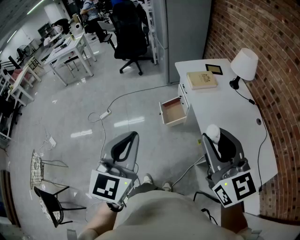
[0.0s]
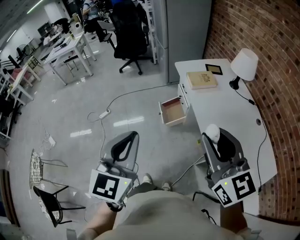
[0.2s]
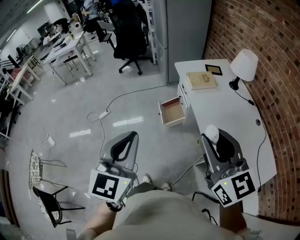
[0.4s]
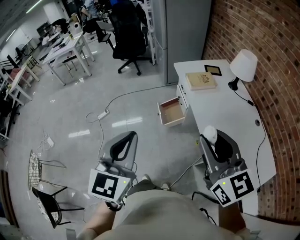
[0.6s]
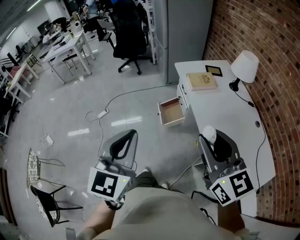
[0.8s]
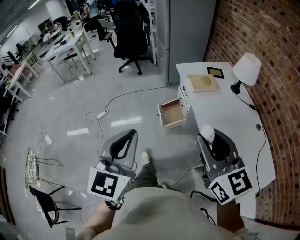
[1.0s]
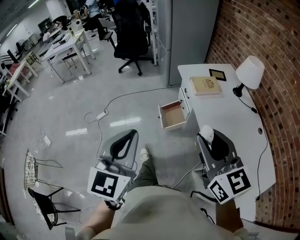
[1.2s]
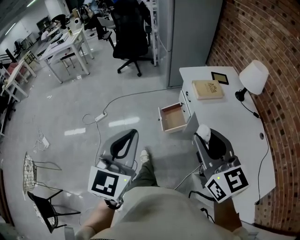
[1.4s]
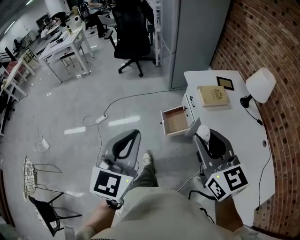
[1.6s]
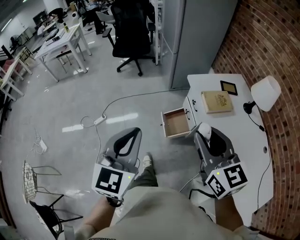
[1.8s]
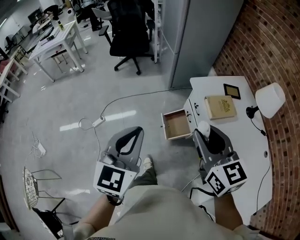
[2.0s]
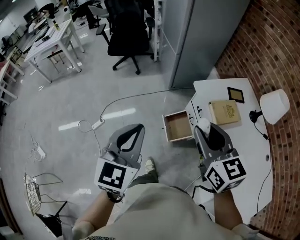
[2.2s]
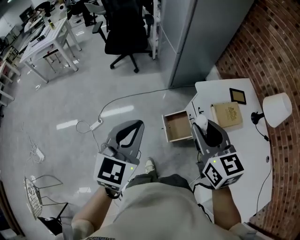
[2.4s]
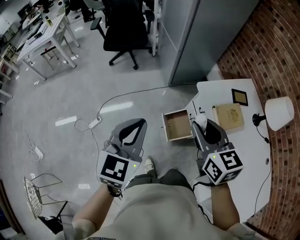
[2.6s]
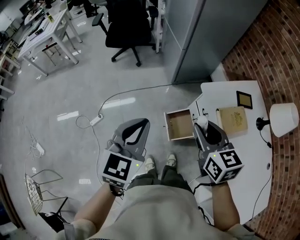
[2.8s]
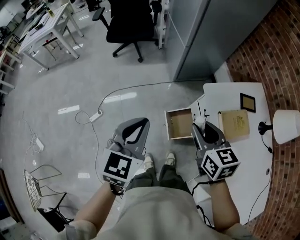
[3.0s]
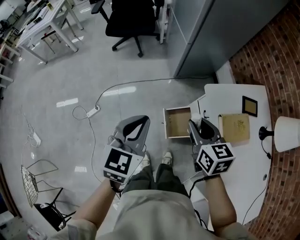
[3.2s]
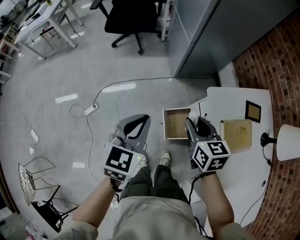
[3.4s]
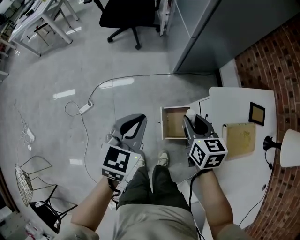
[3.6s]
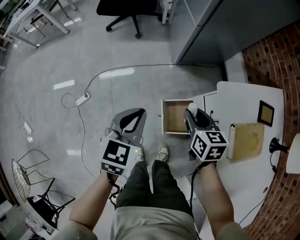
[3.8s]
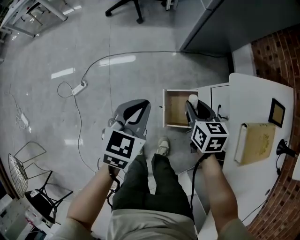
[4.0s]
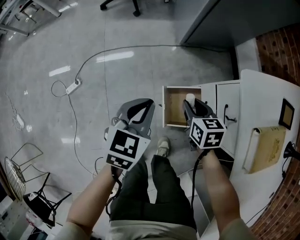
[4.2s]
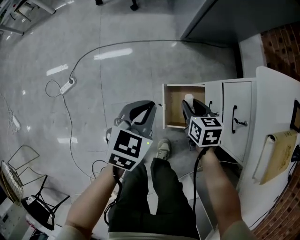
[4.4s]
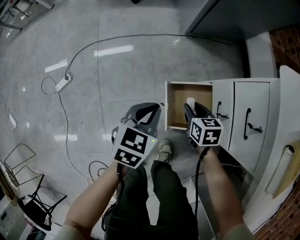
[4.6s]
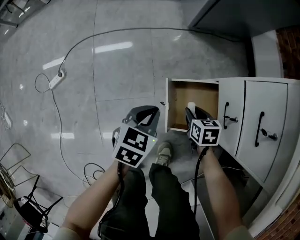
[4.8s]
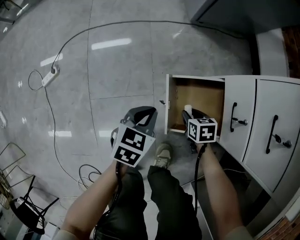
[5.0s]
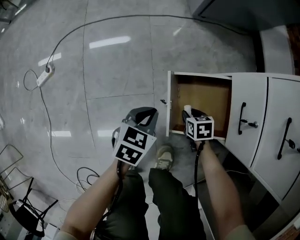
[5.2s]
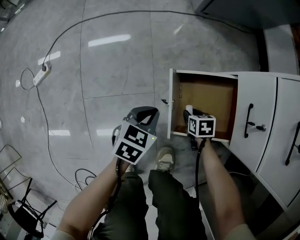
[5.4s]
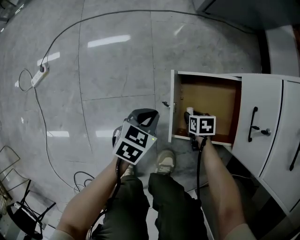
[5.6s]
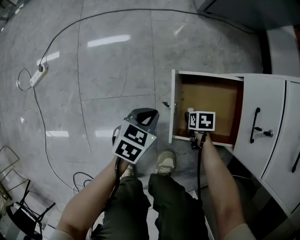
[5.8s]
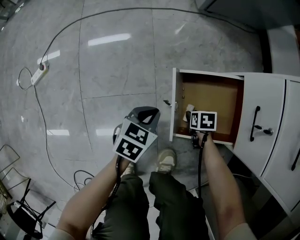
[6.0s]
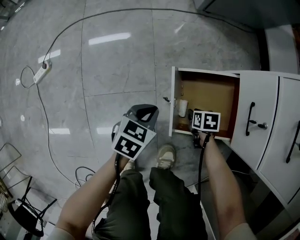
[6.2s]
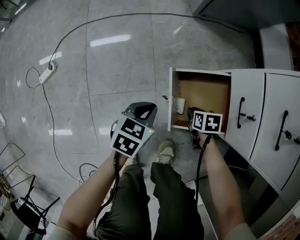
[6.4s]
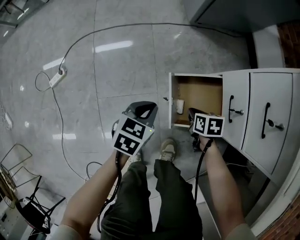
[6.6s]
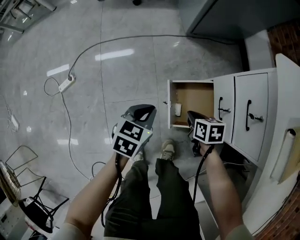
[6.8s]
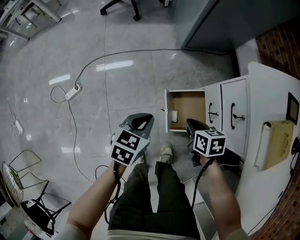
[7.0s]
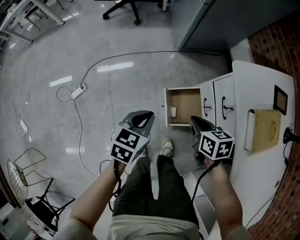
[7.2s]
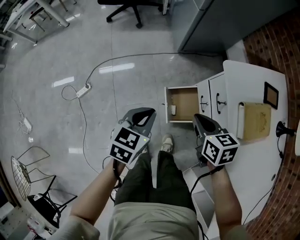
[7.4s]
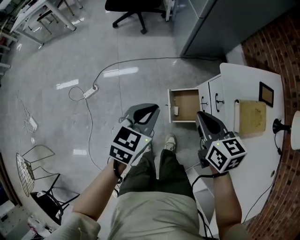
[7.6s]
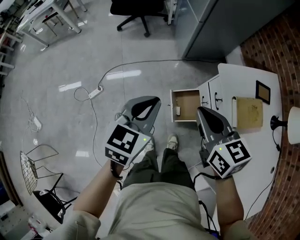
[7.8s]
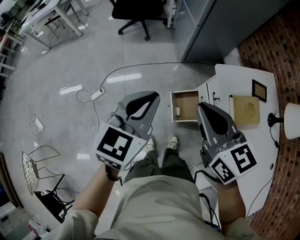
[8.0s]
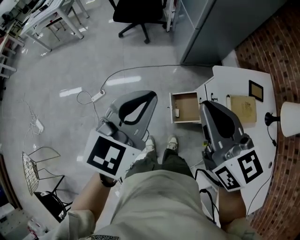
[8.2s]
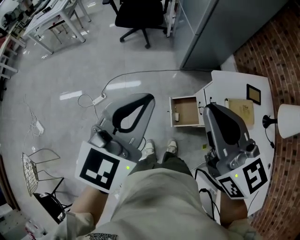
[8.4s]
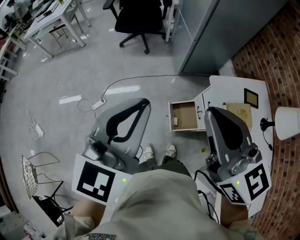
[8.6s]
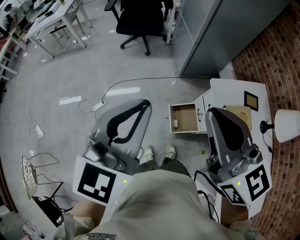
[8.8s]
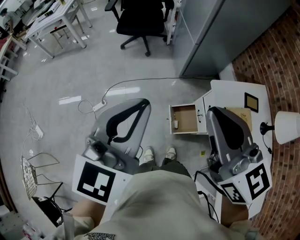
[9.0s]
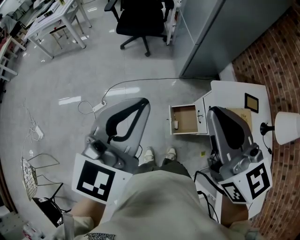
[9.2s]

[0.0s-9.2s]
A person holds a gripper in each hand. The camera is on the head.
0.0s to 1.6s: The left gripper goes about 15 cm forward, while the right gripper moves forward and to the left, approximately 20 cm.
1.6s to 3.0s: The right gripper moves forward and downward, about 40 cm, and swivels approximately 20 degrees; the left gripper shifts roughly 35 cm forward.
3.0s to 4.6s: Both grippers travel together downward, approximately 60 cm. The right gripper swivels approximately 30 degrees, while the left gripper turns by some 20 degrees.
4.6s to 6.2s: Both grippers travel together downward, approximately 30 cm. The right gripper turns by some 30 degrees.
6.2s to 7.6s: Both grippers move upward, some 70 cm. The left gripper changes its angle by some 20 degrees. The right gripper points its fingers approximately 40 degrees further upward, and closes its fingers.
7.6s to 9.2s: The two grippers go about 35 cm upward. The right gripper changes its angle by approximately 30 degrees, while the left gripper swivels about 30 degrees.

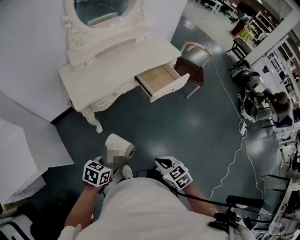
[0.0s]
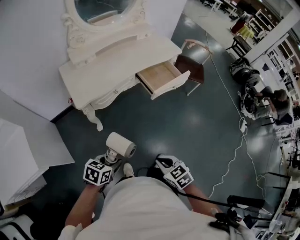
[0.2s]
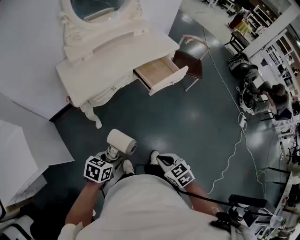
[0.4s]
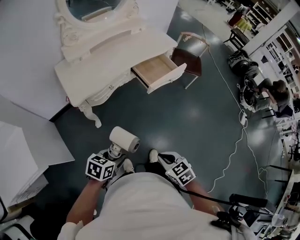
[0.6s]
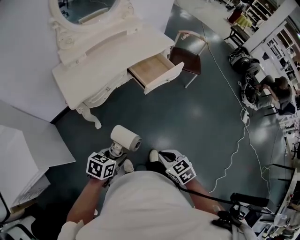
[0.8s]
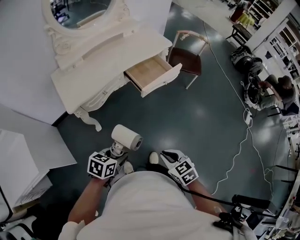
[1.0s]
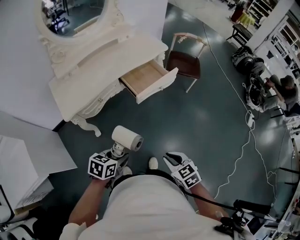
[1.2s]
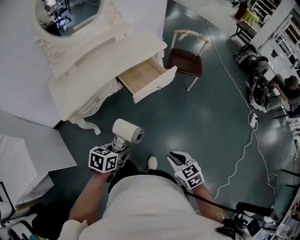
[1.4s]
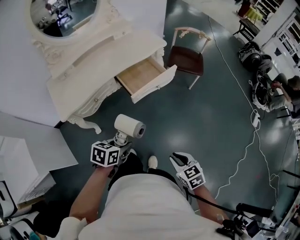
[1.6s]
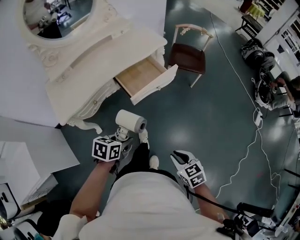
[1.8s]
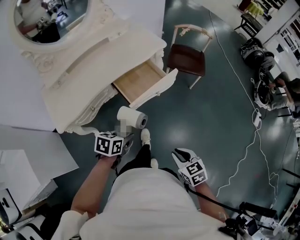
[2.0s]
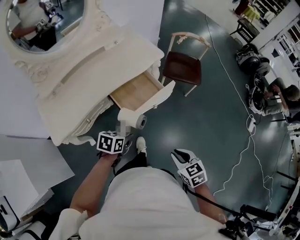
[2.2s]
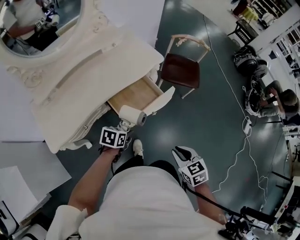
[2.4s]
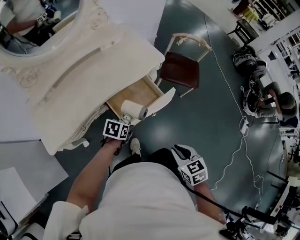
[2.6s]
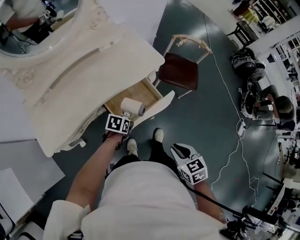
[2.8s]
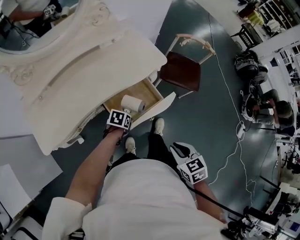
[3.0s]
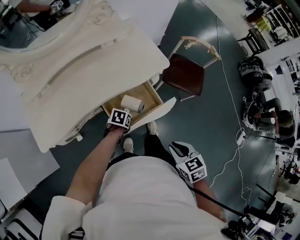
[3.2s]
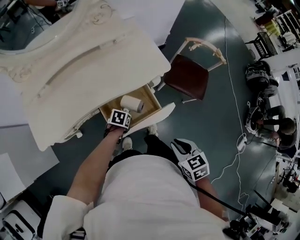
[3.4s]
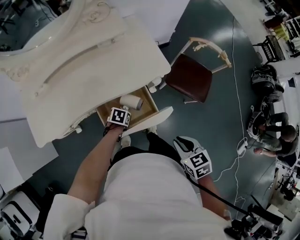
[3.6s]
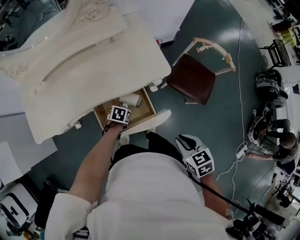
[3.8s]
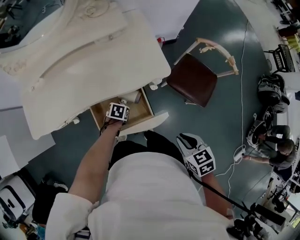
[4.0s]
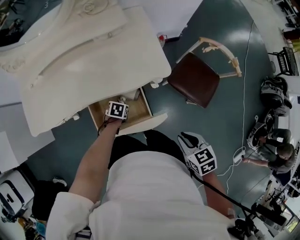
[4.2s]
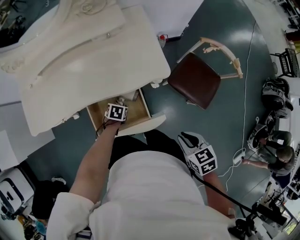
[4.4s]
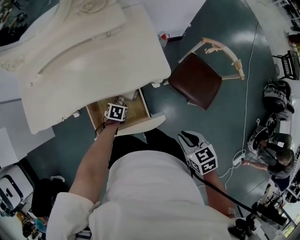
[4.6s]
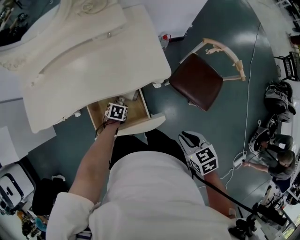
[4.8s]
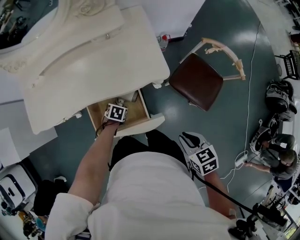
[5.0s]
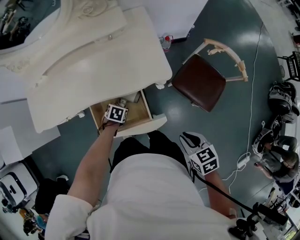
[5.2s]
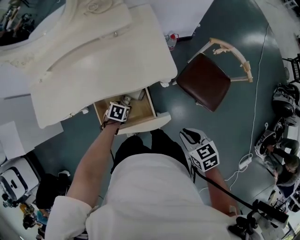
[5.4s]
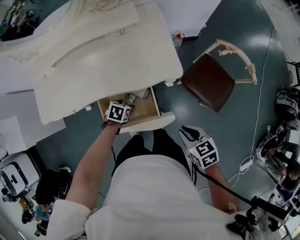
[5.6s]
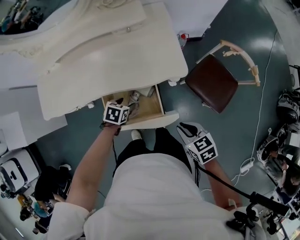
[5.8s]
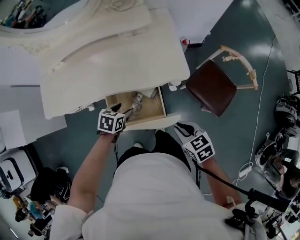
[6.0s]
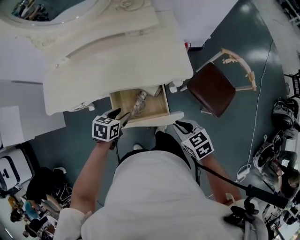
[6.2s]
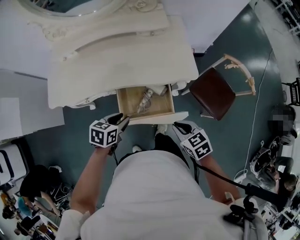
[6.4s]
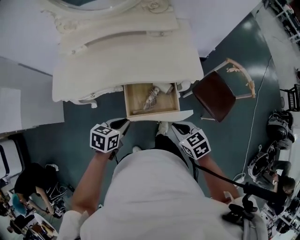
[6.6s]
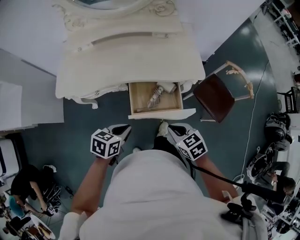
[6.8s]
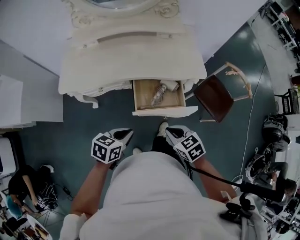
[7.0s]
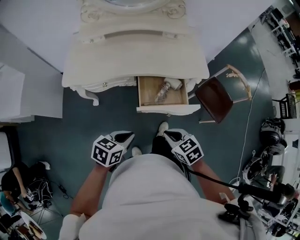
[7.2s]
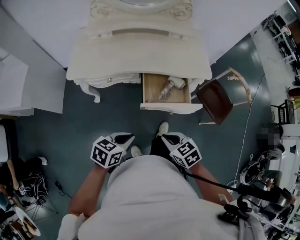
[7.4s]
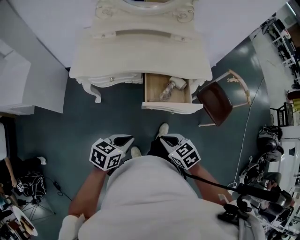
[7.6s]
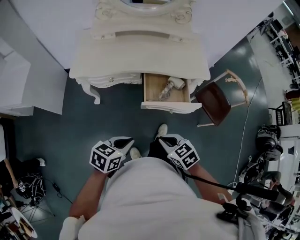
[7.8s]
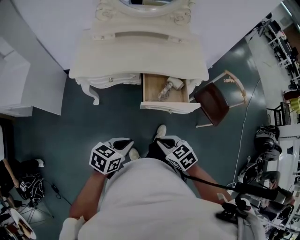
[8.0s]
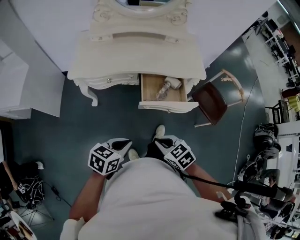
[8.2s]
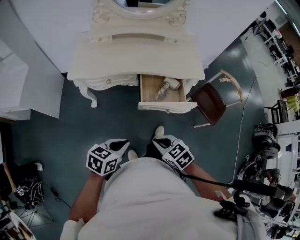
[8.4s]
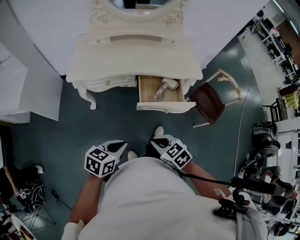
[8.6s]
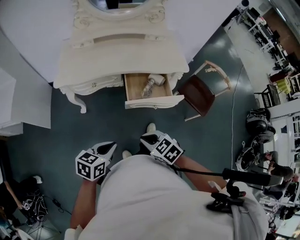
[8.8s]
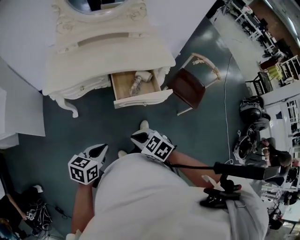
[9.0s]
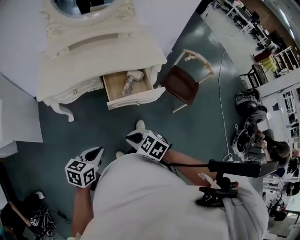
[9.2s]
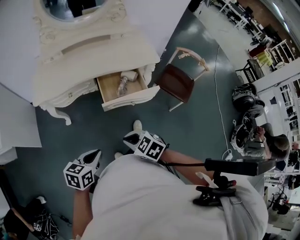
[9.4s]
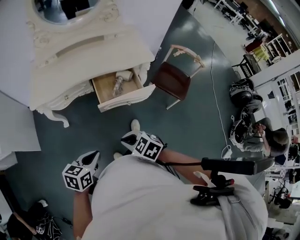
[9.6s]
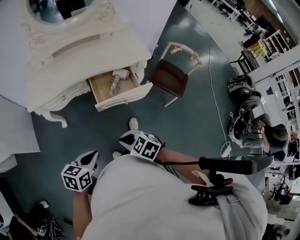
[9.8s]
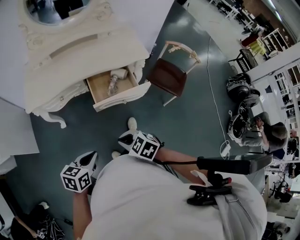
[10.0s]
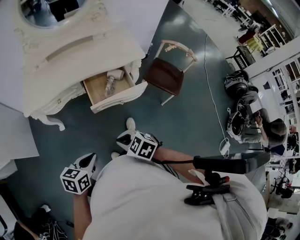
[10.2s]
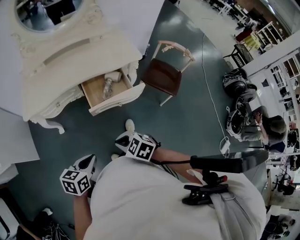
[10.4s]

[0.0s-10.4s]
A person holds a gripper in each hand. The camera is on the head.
0.0s to 1.4s: The grippers both shift to the right and forward by roughly 25 cm.
1.4s to 3.0s: The left gripper is displaced forward and downward by some 50 cm. The right gripper goes roughly 35 cm forward.
3.0s to 4.4s: The left gripper changes place by some 20 cm, and changes its angle by some 20 degrees. The right gripper ends up roughly 30 cm from where it was, and swivels some 20 degrees.
4.4s to 6.0s: The left gripper is displaced upward by about 15 cm, while the right gripper changes place by roughly 10 cm.
6.0s to 7.4s: The right gripper moves to the left and backward, approximately 35 cm. Meanwhile the left gripper travels backward, to the left and upward by approximately 40 cm, turns by some 20 degrees, and closes its fingers.
7.4s to 9.0s: The right gripper moves backward and to the left, about 10 cm. Meanwhile the left gripper shifts some 10 cm backward.
9.0s to 10.4s: There are only small adjustments of the grippers.

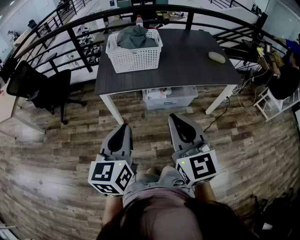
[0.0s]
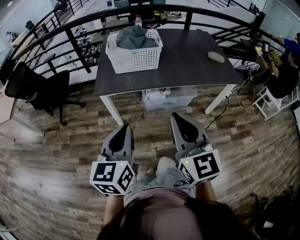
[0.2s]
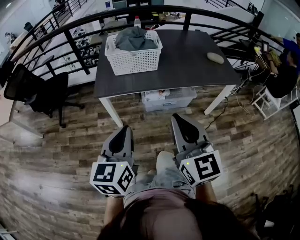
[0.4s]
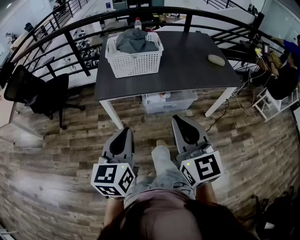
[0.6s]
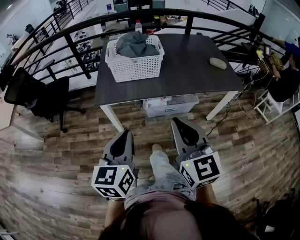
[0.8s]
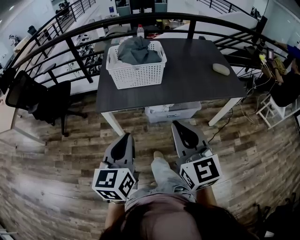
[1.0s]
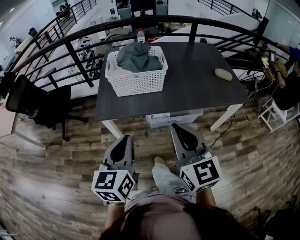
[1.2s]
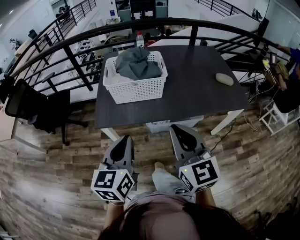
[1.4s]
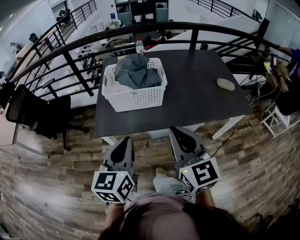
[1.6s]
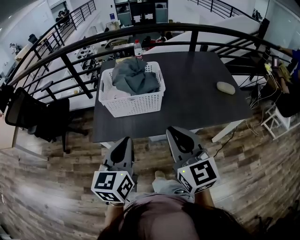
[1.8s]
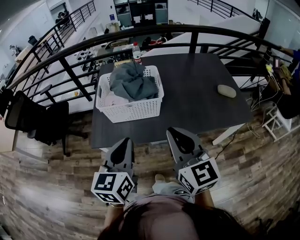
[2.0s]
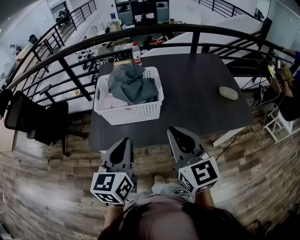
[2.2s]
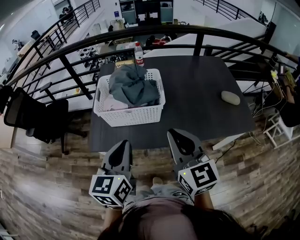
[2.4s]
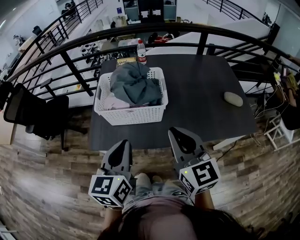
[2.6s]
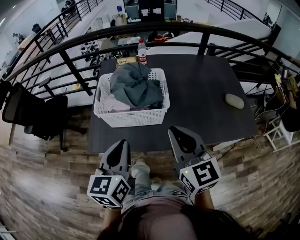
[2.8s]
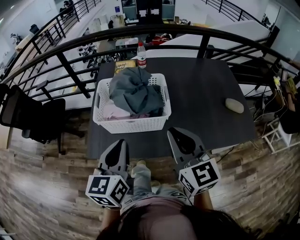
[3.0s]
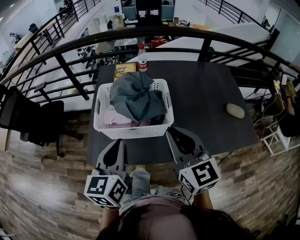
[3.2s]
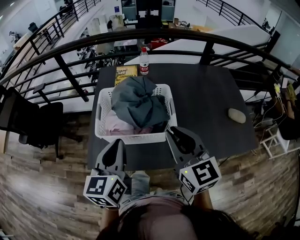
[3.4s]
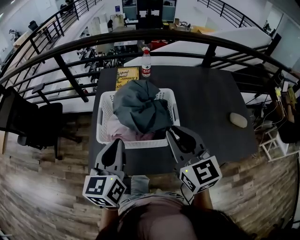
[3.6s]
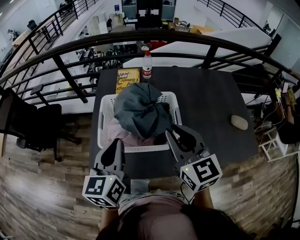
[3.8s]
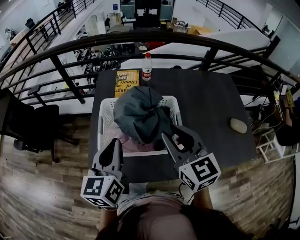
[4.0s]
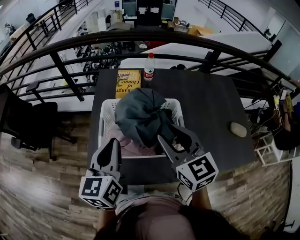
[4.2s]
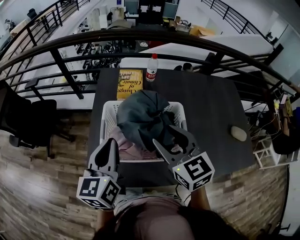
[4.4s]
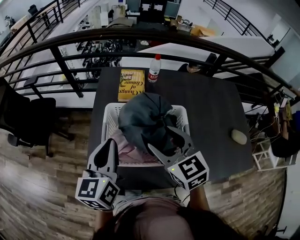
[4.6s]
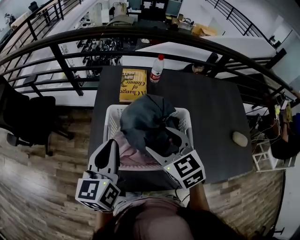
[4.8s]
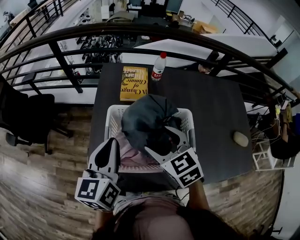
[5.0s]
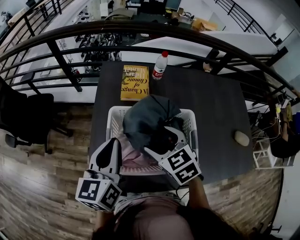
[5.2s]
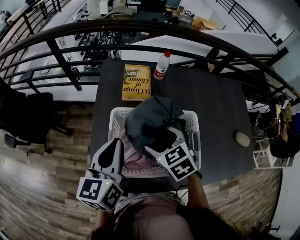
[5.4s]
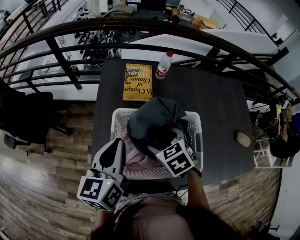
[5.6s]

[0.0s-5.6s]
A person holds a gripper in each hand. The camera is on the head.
0.0s to 1.4s: The grippers both shift forward by about 20 cm.
1.4s to 2.8s: The grippers both shift forward by approximately 20 cm.
2.8s to 4.2s: The grippers both shift forward by about 20 cm. The right gripper opens its fingers.
4.2s to 5.6s: The left gripper heads forward, covering approximately 10 cm, while the right gripper moves downward and forward, approximately 20 cm, points its fingers roughly 40 degrees further downward, and opens up.
